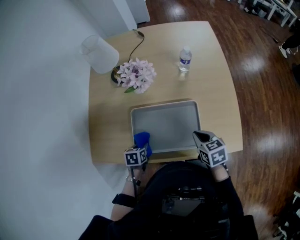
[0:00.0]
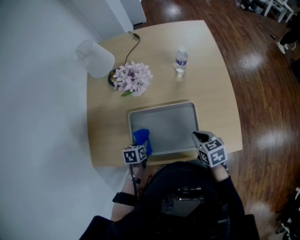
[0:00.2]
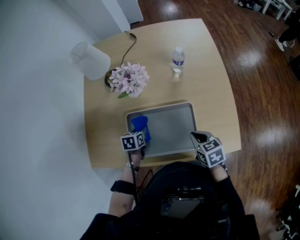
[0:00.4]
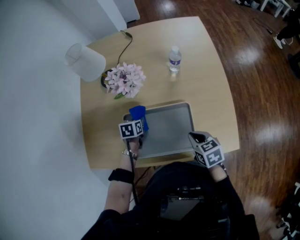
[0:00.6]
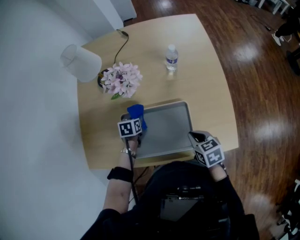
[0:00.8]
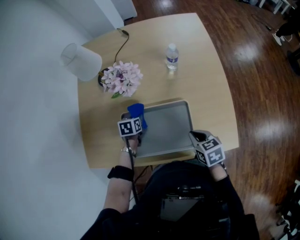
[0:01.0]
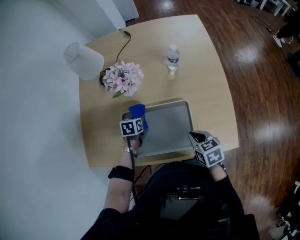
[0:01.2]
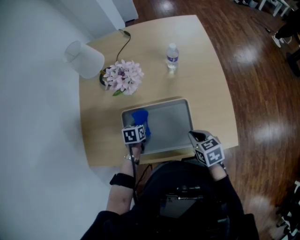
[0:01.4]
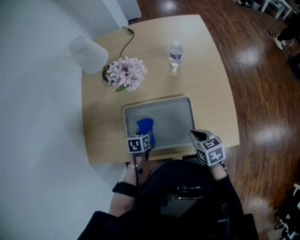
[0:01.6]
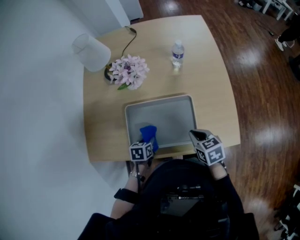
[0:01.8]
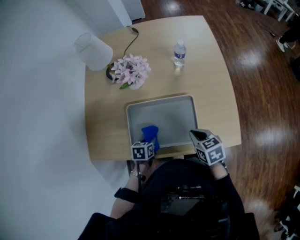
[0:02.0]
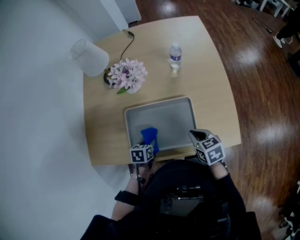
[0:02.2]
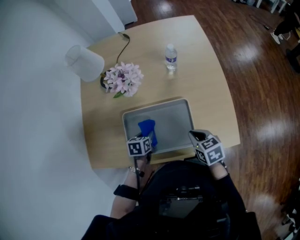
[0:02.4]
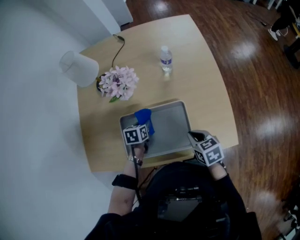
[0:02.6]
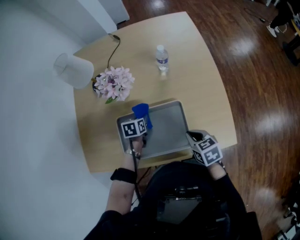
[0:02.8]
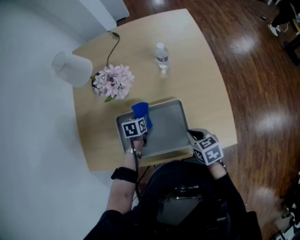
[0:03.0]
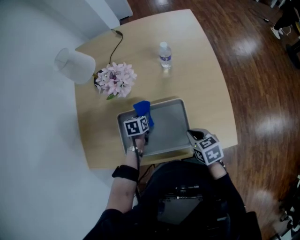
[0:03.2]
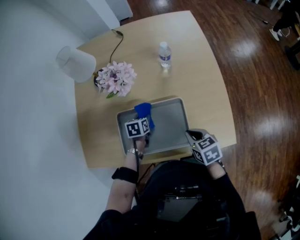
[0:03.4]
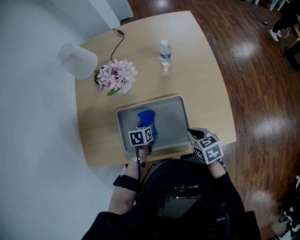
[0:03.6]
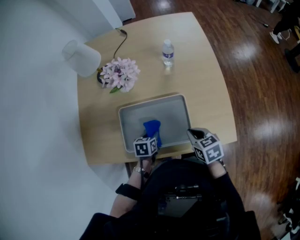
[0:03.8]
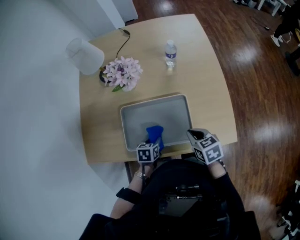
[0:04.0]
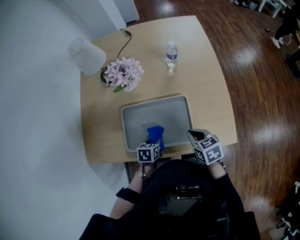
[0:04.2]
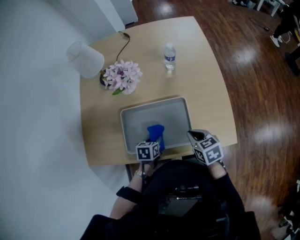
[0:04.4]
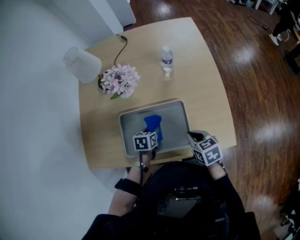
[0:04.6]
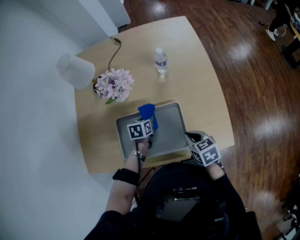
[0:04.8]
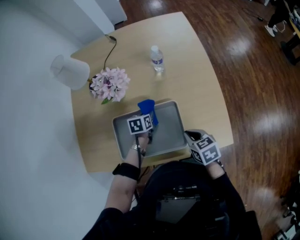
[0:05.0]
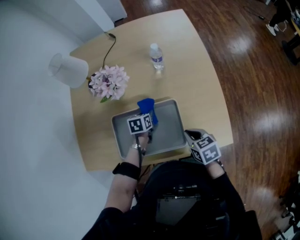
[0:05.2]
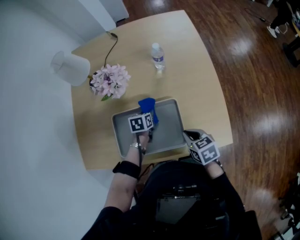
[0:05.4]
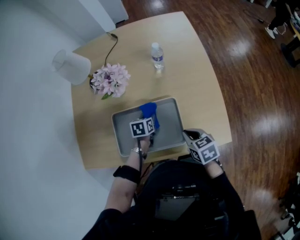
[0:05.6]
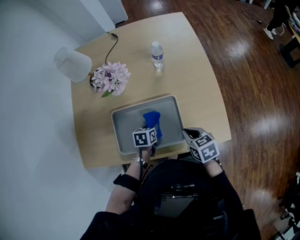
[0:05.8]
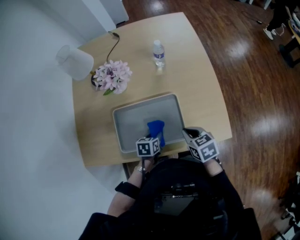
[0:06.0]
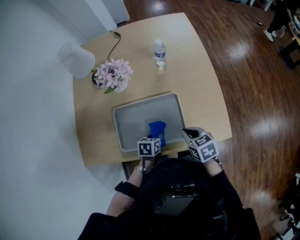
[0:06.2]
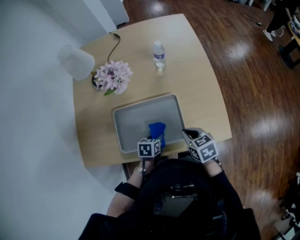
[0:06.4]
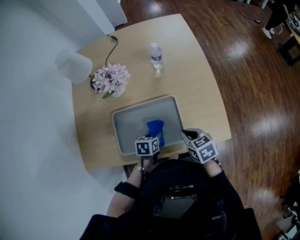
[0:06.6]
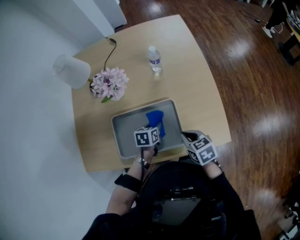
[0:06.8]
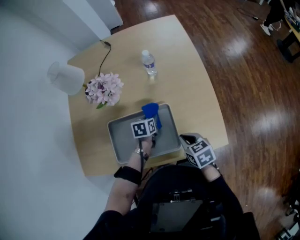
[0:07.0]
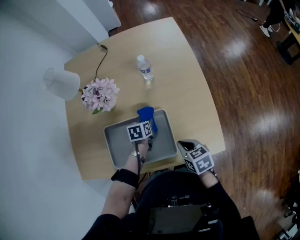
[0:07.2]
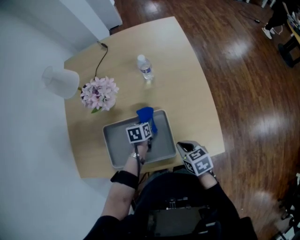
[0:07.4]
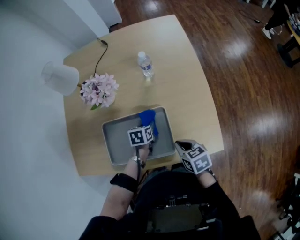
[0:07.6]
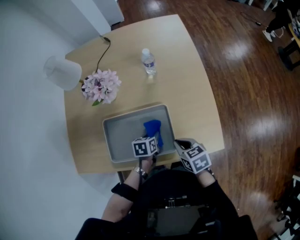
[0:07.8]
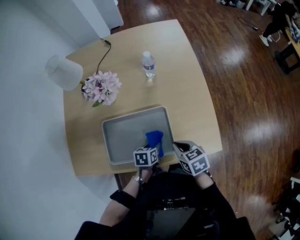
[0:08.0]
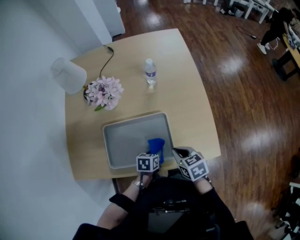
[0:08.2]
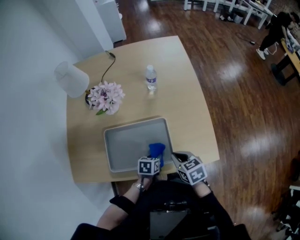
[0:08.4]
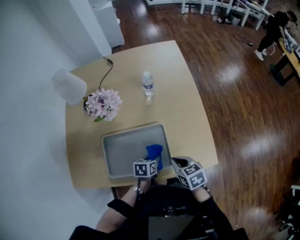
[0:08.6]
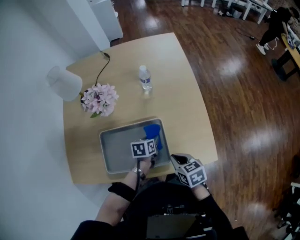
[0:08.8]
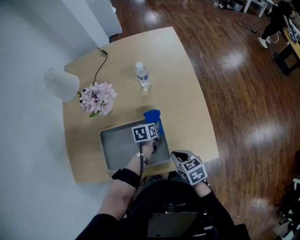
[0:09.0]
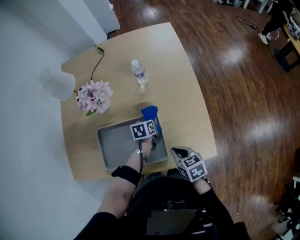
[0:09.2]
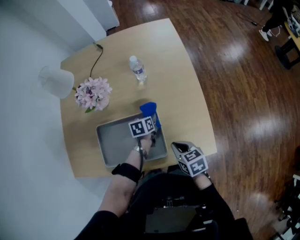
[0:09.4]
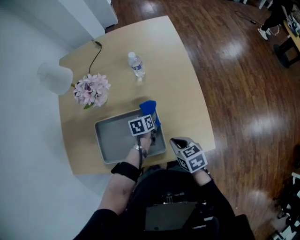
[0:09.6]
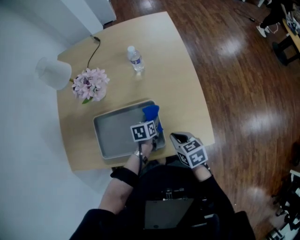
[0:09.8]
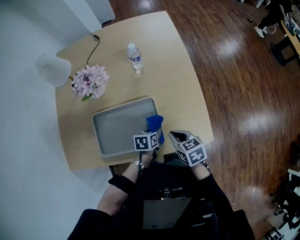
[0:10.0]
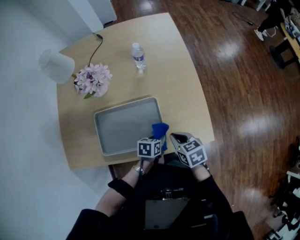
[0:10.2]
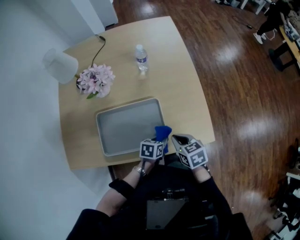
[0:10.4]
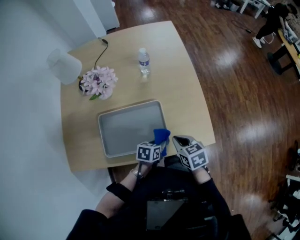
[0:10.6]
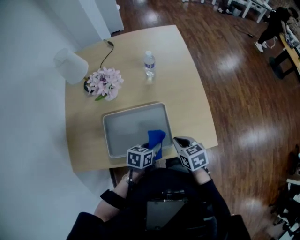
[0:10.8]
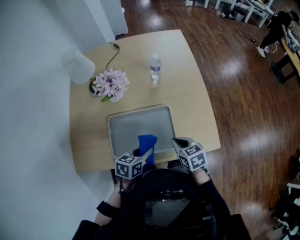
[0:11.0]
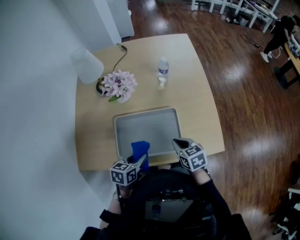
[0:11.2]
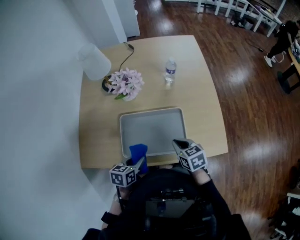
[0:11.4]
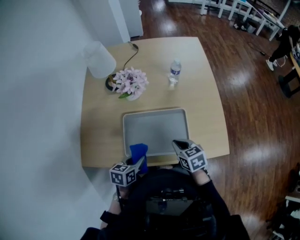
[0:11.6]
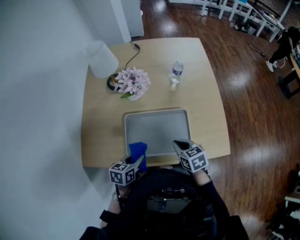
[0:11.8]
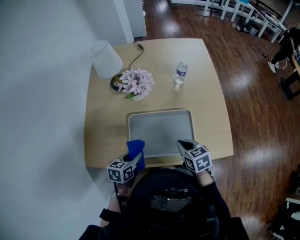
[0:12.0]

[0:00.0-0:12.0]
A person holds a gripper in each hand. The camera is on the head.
0:00.0 to 0:01.6: The left gripper shifts about 5 cm to the right, and travels forward and back again, roughly 15 cm each way.
0:01.6 to 0:03.0: The left gripper heads forward, covering about 10 cm.
0:03.0 to 0:04.4: The left gripper is displaced backward by approximately 15 cm.
0:04.4 to 0:06.0: The left gripper travels forward and back again, approximately 15 cm each way.
0:06.0 to 0:07.6: The left gripper shifts some 10 cm forward.
0:07.6 to 0:09.0: The left gripper goes some 5 cm to the right, and reaches about 15 cm backward, then returns.
0:09.0 to 0:10.4: The left gripper is displaced backward by approximately 20 cm.
0:10.4 to 0:12.0: The right gripper moves to the left, approximately 15 cm. The left gripper goes some 30 cm to the left, and turns by about 20 degrees.

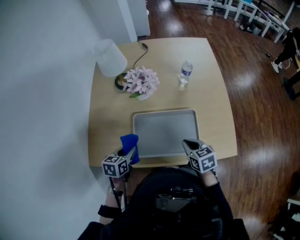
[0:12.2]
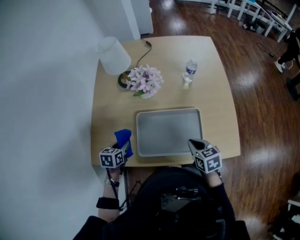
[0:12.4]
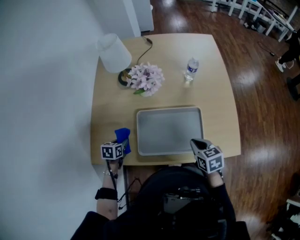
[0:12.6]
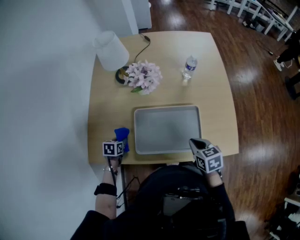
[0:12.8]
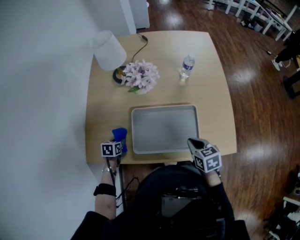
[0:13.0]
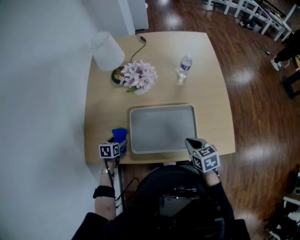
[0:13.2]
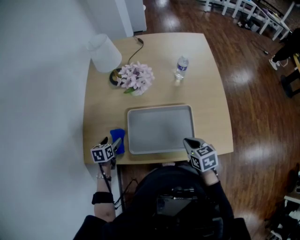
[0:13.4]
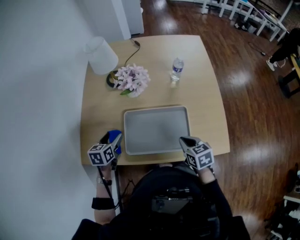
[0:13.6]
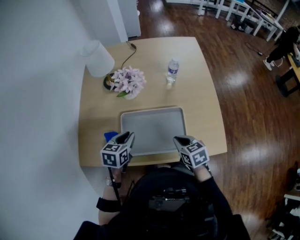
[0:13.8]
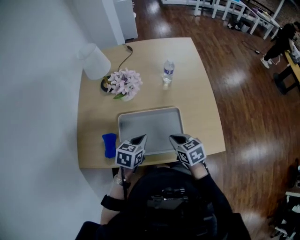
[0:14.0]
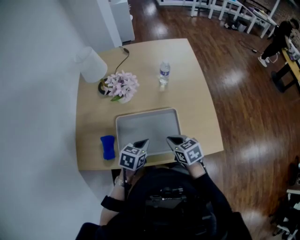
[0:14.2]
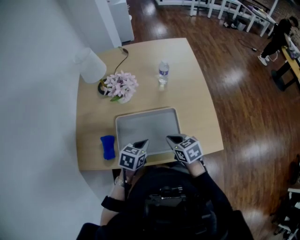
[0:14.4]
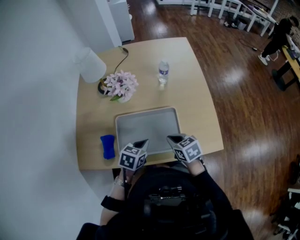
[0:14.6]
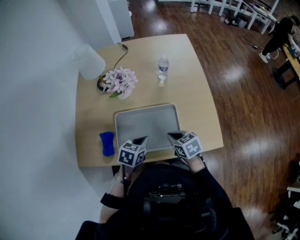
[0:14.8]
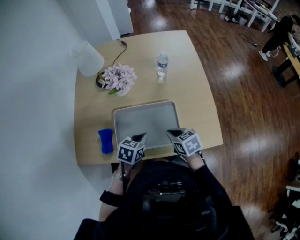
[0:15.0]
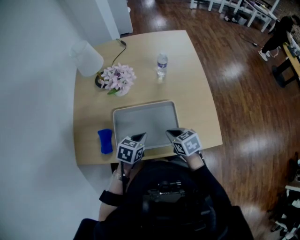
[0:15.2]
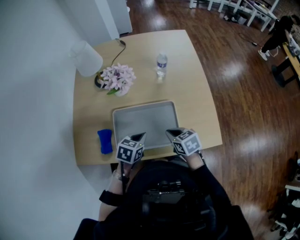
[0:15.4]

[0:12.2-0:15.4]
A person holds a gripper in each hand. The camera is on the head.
0:12.2 to 0:13.8: The left gripper is displaced to the right by some 5 cm, moves some 15 cm downward and comes back, and opens and closes again.
0:13.8 to 0:15.4: The left gripper goes approximately 10 cm to the right.

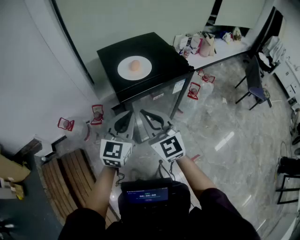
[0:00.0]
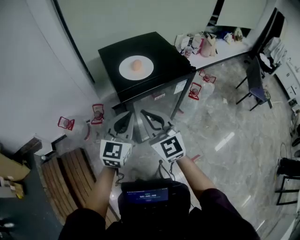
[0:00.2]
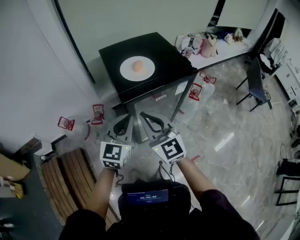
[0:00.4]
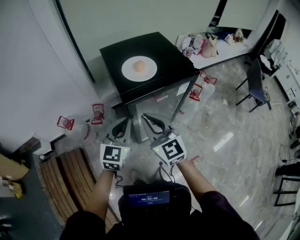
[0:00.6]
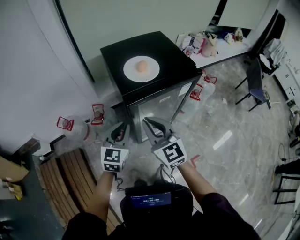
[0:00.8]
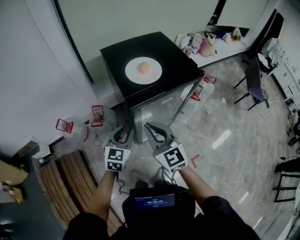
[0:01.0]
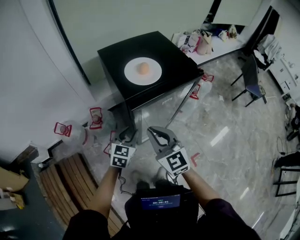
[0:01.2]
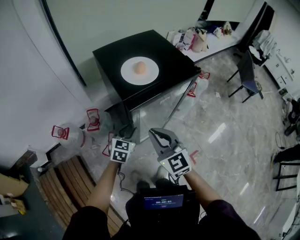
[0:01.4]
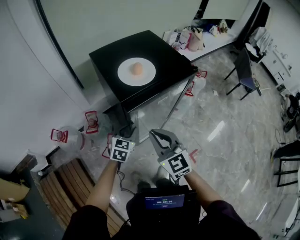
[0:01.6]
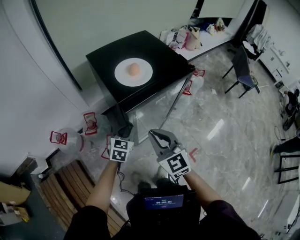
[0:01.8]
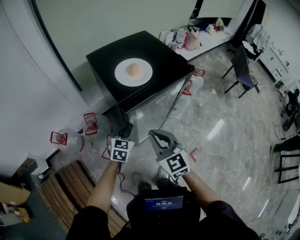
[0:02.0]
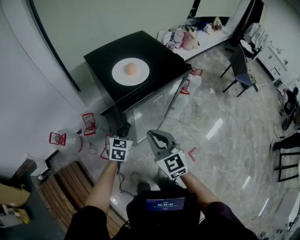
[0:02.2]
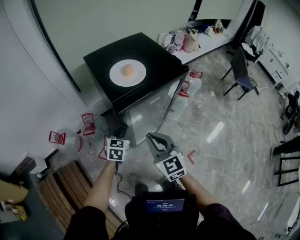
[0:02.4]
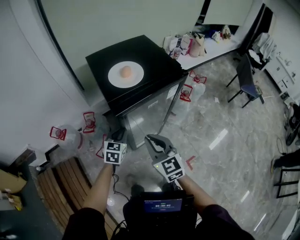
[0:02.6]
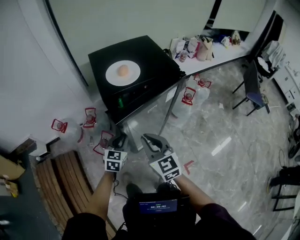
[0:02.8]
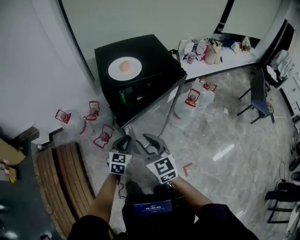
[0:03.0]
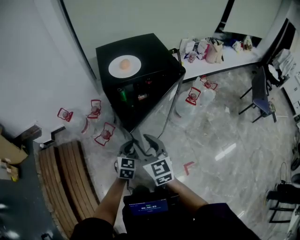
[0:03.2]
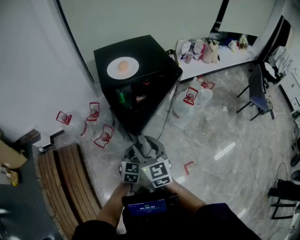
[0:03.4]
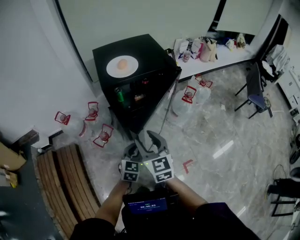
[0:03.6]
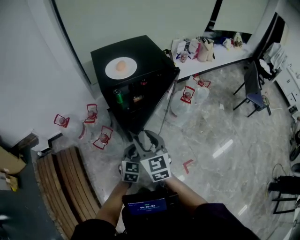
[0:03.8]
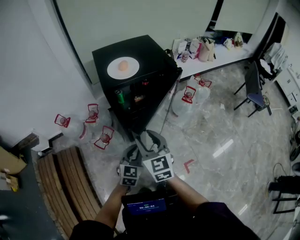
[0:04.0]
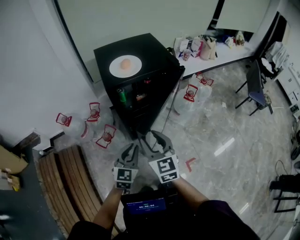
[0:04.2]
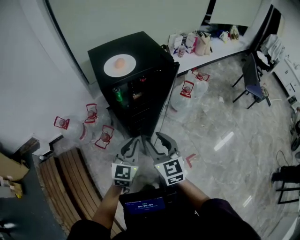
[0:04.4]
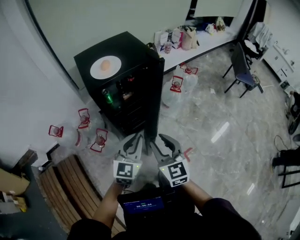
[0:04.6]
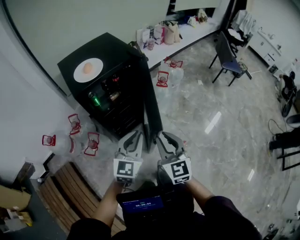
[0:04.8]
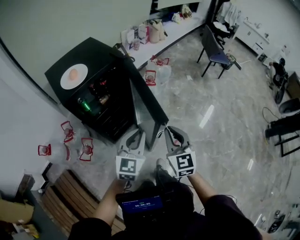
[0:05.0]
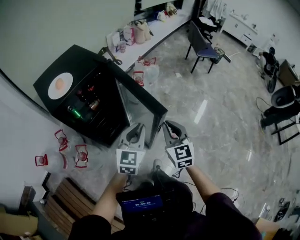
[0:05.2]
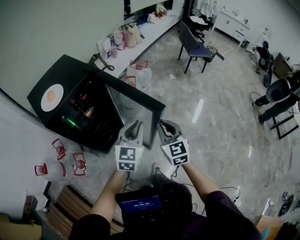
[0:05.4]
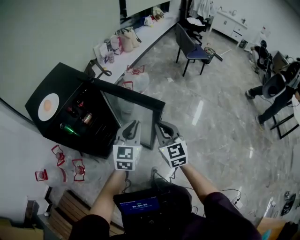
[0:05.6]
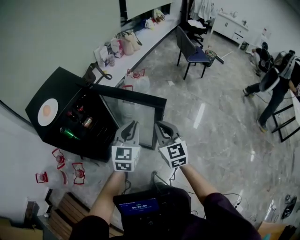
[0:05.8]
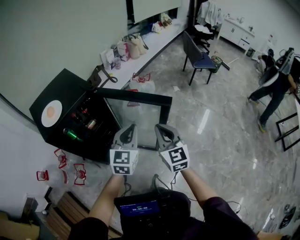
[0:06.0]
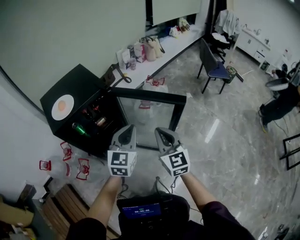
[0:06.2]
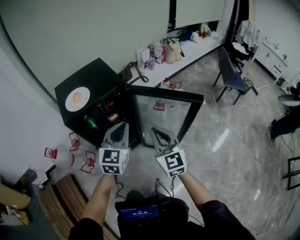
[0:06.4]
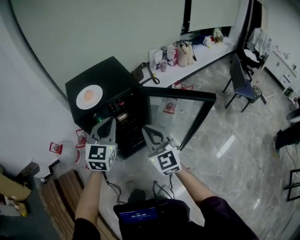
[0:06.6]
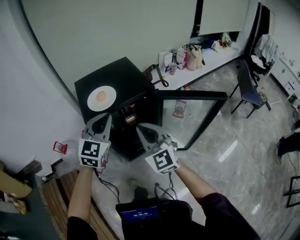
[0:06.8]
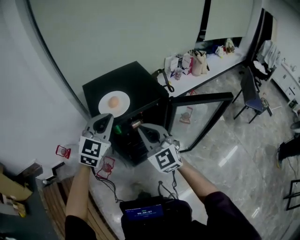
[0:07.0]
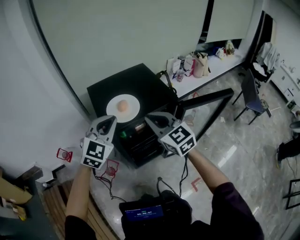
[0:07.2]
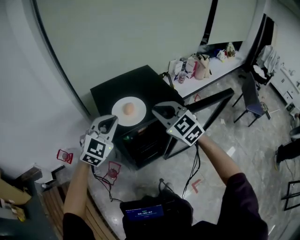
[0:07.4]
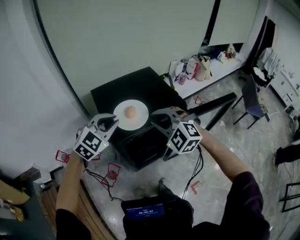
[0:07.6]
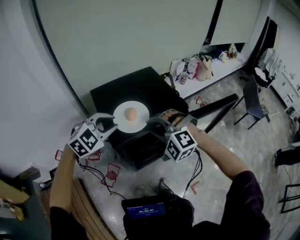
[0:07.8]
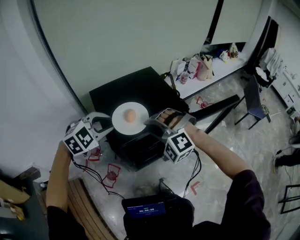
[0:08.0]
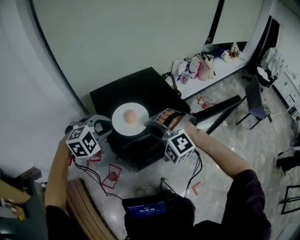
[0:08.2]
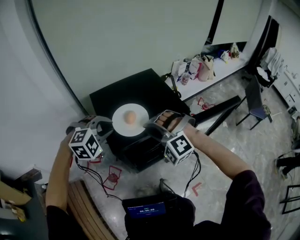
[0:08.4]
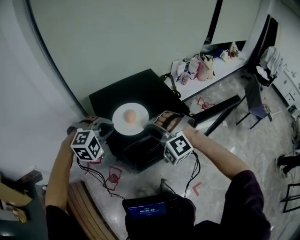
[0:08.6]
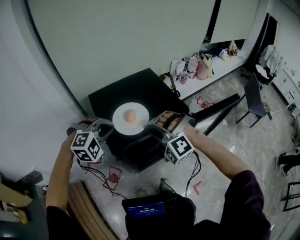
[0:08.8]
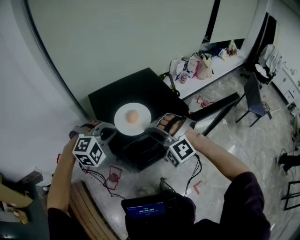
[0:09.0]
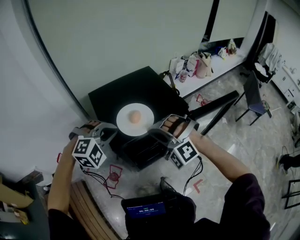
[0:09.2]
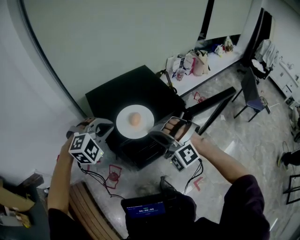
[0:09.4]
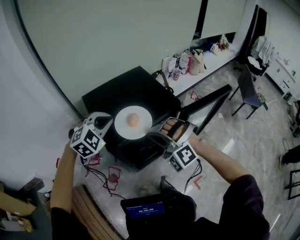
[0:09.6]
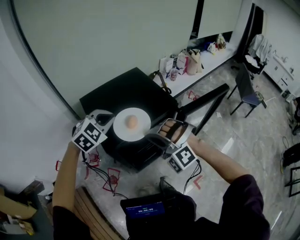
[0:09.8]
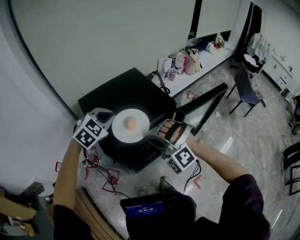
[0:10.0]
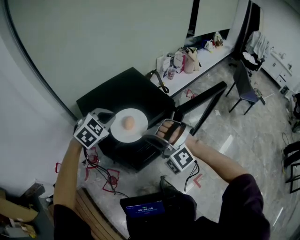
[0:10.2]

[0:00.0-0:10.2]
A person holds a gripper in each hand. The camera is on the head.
0:00.0 to 0:01.4: The right gripper travels downward by approximately 10 cm. Meanwhile the left gripper shifts about 20 cm downward, and swivels roughly 30 degrees.
0:01.4 to 0:03.0: The left gripper travels backward and to the right by approximately 10 cm. The right gripper goes some 10 cm to the right and backward.
0:03.0 to 0:04.4: The left gripper is displaced upward and backward by some 10 cm.
0:04.4 to 0:05.8: The left gripper changes place by some 30 cm, and rotates some 30 degrees; the right gripper changes place by roughly 30 cm, turns by approximately 30 degrees, and closes up.
0:05.8 to 0:07.2: Both grippers are carried about 40 cm. The right gripper rotates roughly 50 degrees; the left gripper changes its angle by about 30 degrees.
0:07.2 to 0:08.8: The left gripper moves downward and forward, about 10 cm, and angles its fingers downward, by about 30 degrees, while the right gripper ends up approximately 10 cm from where it was, and twists roughly 70 degrees counterclockwise, seen from behind.
0:08.8 to 0:10.2: The right gripper is displaced backward by some 5 cm. Meanwhile the left gripper goes about 5 cm to the right, and changes its angle by about 30 degrees.
